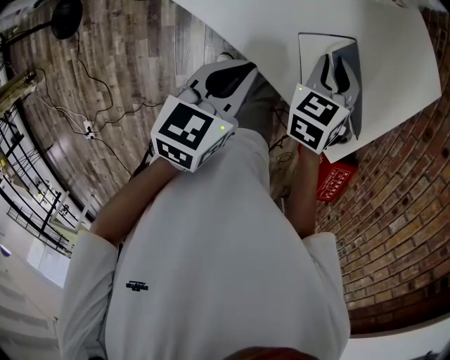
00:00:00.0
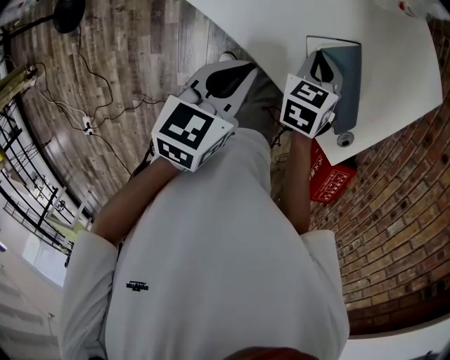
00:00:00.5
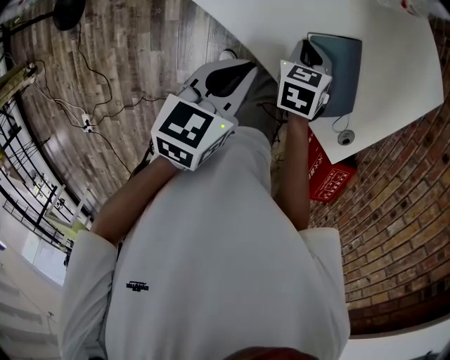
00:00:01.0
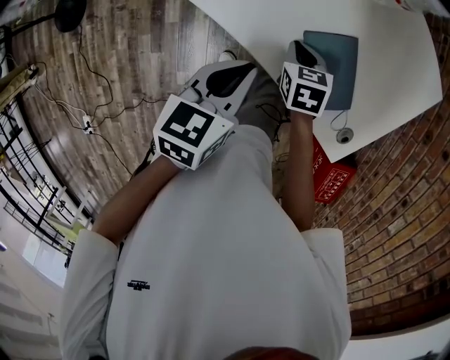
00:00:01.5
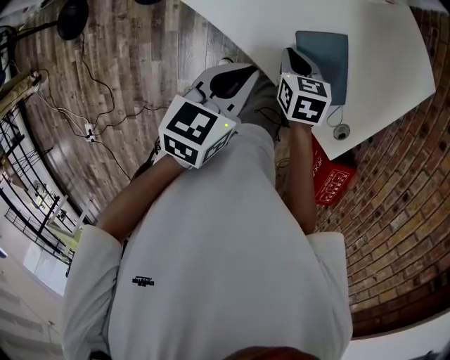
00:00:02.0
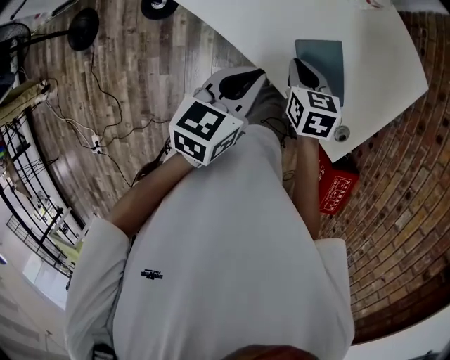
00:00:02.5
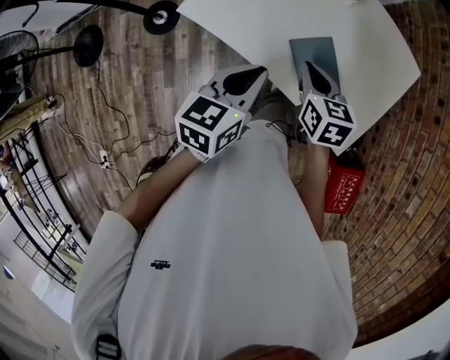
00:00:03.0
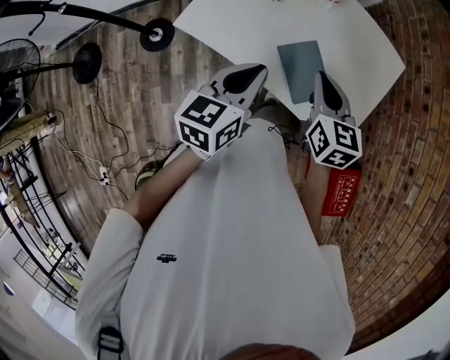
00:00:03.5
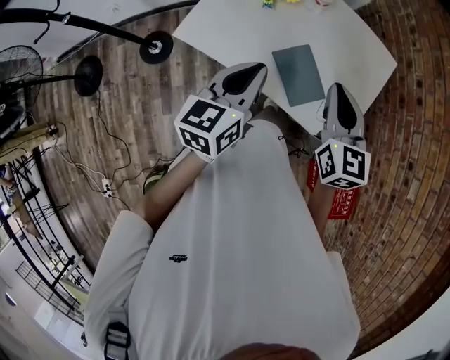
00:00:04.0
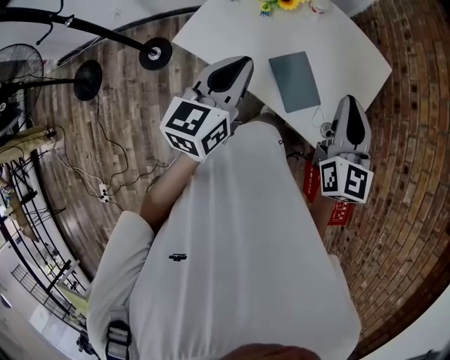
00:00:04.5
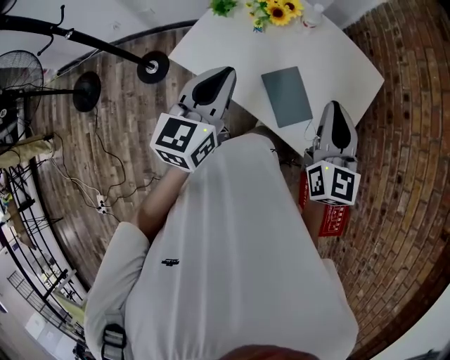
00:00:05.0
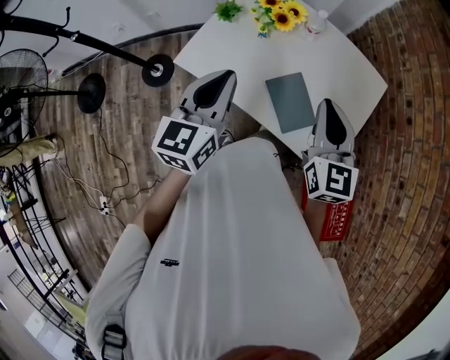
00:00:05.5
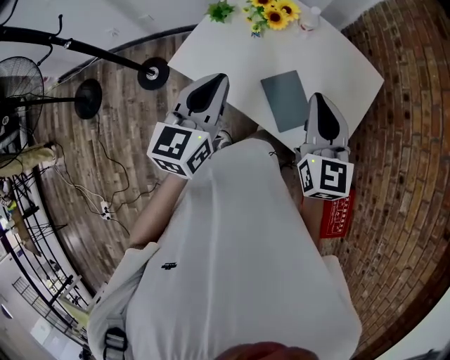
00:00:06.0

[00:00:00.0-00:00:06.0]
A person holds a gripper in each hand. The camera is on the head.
00:00:00.0 to 00:00:02.0: The right gripper goes roughly 10 cm backward, downward and to the left, and changes its angle by approximately 30 degrees.
00:00:02.0 to 00:00:04.0: The left gripper is displaced upward by approximately 15 cm, and swivels some 20 degrees. The right gripper heads upward, covering approximately 30 cm, and points its fingers roughly 40 degrees further upward.
00:00:04.0 to 00:00:06.0: The right gripper ends up some 5 cm from where it was. The left gripper is displaced to the left by some 5 cm.

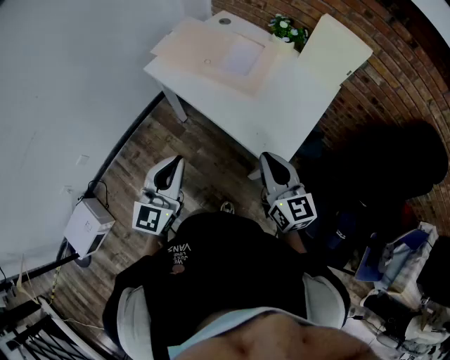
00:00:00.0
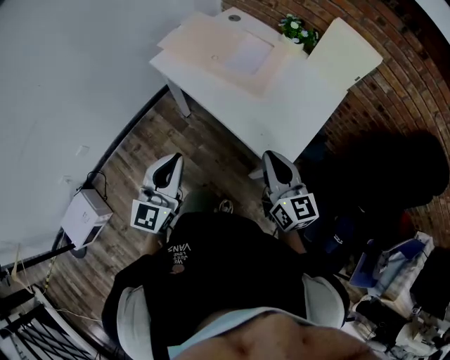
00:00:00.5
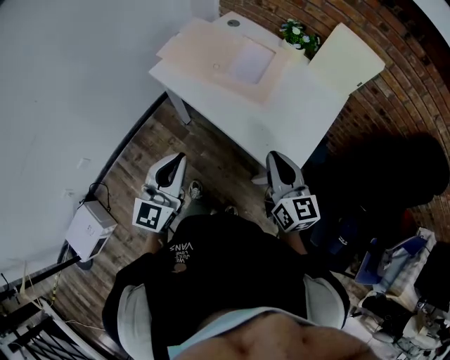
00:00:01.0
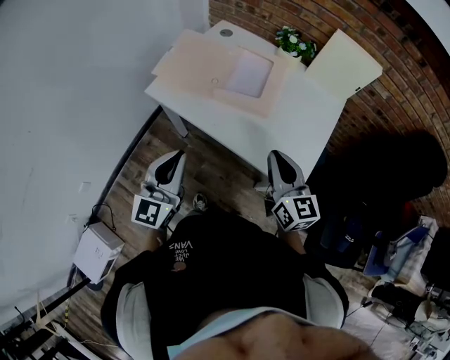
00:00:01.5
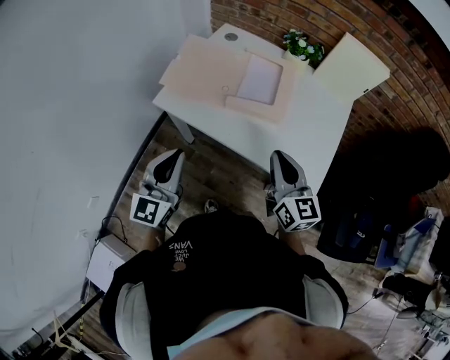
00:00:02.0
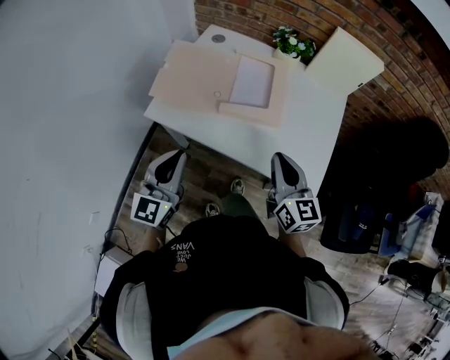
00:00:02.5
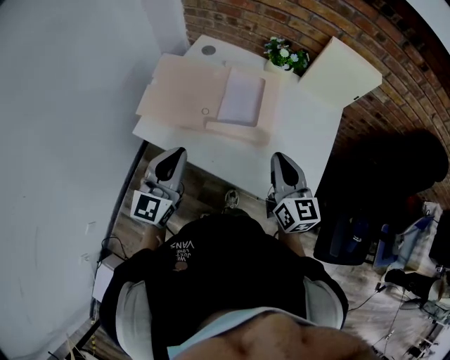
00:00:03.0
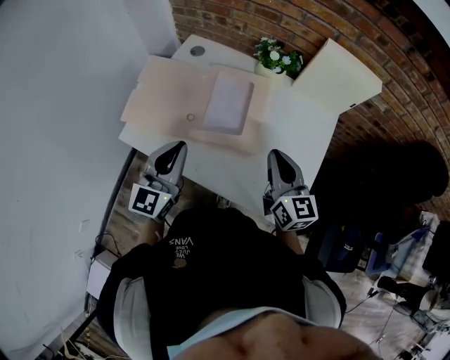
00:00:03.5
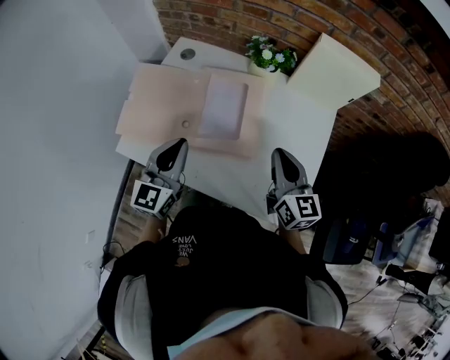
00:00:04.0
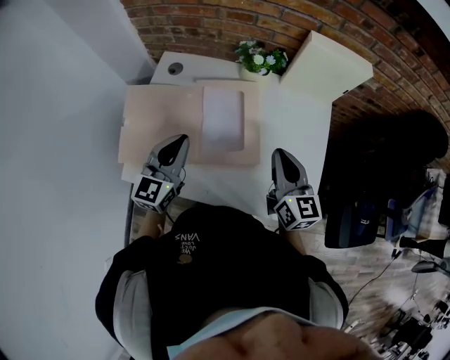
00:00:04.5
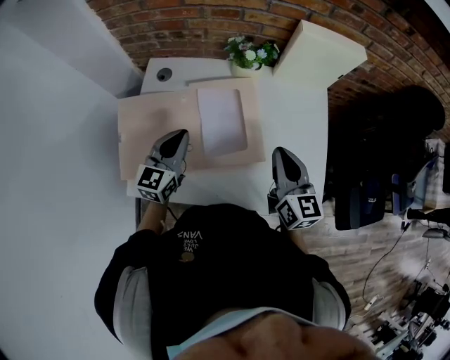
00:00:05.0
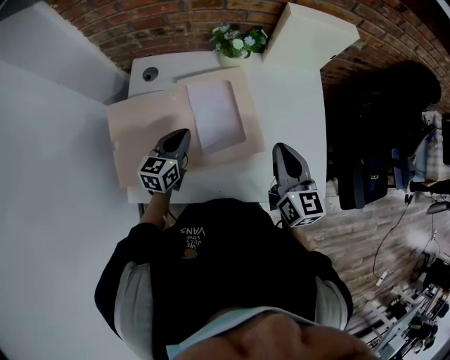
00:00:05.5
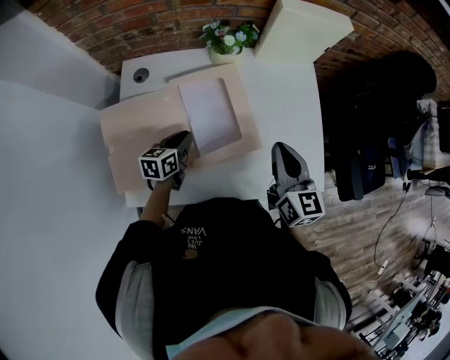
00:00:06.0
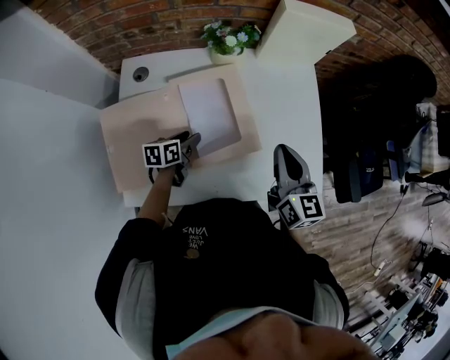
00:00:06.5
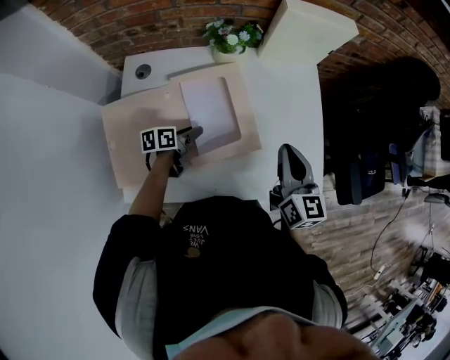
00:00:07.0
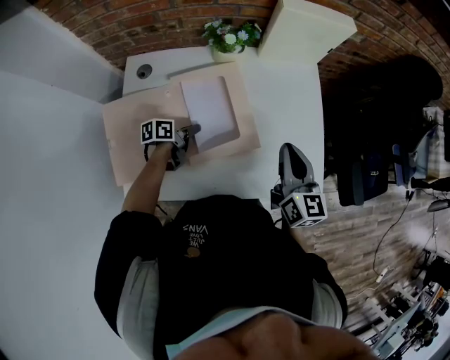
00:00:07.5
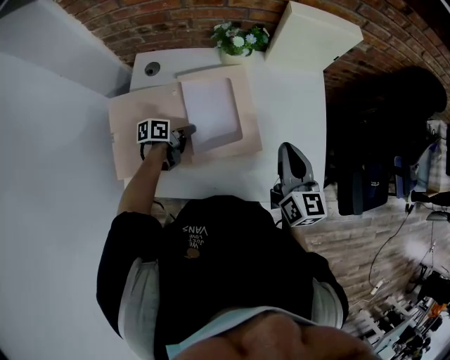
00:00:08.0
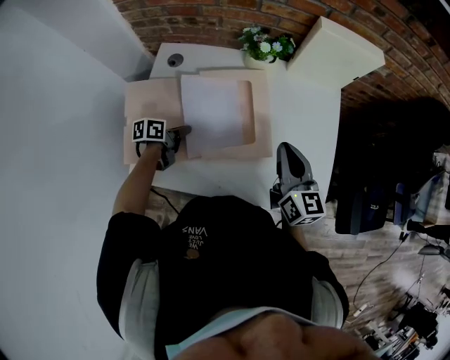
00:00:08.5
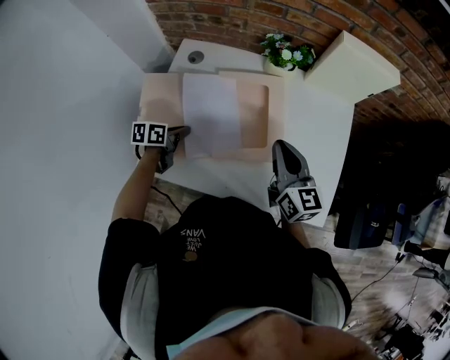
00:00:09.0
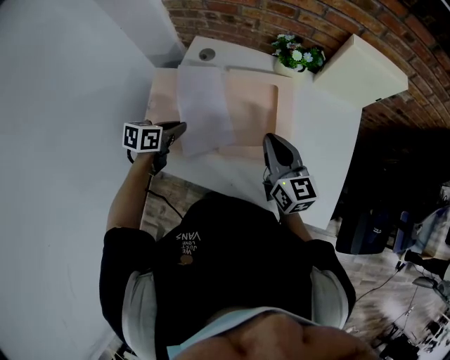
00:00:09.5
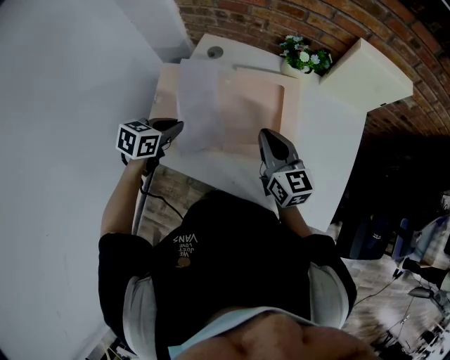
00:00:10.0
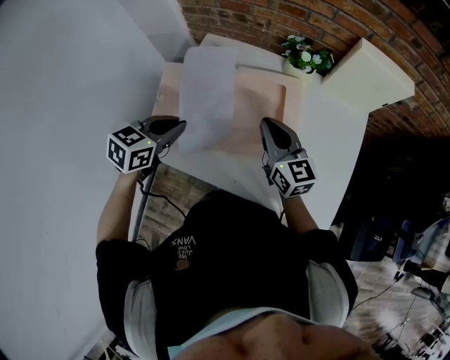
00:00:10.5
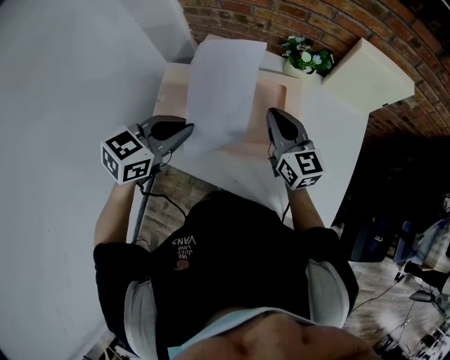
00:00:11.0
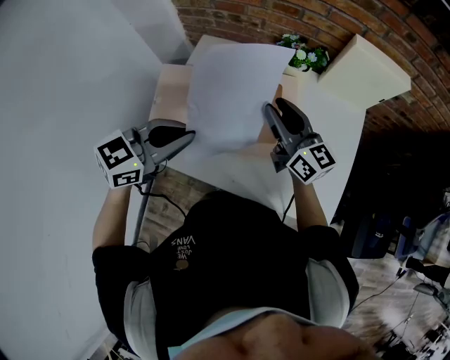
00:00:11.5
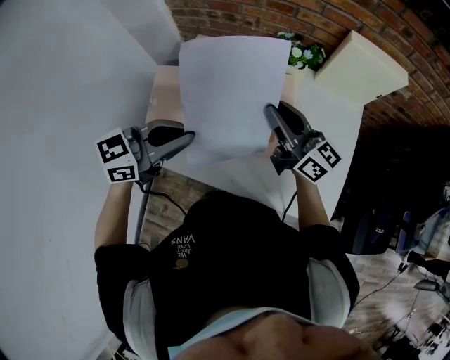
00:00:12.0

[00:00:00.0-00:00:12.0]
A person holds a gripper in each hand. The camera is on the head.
00:00:00.0 to 00:00:02.0: Both grippers move forward and to the left, about 20 cm.
00:00:02.0 to 00:00:04.0: The grippers both shift forward and to the right by roughly 25 cm.
00:00:04.0 to 00:00:06.0: The right gripper changes its angle by about 30 degrees. The left gripper travels downward by about 20 cm, and swivels about 50 degrees.
00:00:06.0 to 00:00:08.0: The left gripper rotates some 30 degrees, and opens and closes again.
00:00:08.0 to 00:00:10.0: The left gripper moves some 20 cm, and changes its angle by roughly 40 degrees; the right gripper moves about 15 cm, and turns by some 30 degrees.
00:00:10.0 to 00:00:12.0: The left gripper shifts roughly 20 cm upward and to the right, and points its fingers roughly 30 degrees further upward; the right gripper heads upward, covering about 10 cm, and changes its angle by approximately 30 degrees.

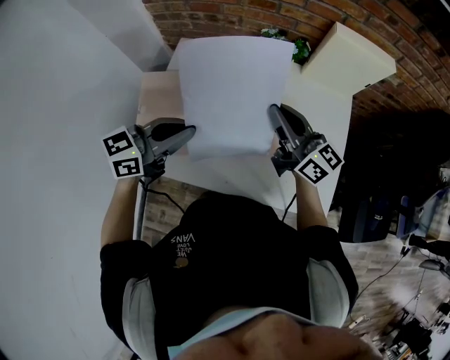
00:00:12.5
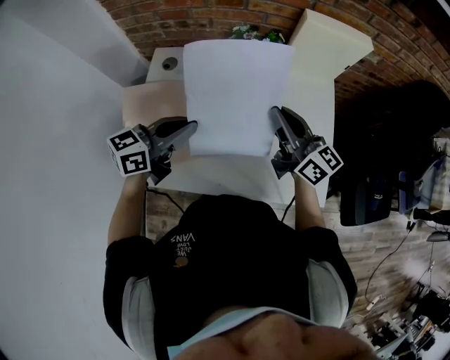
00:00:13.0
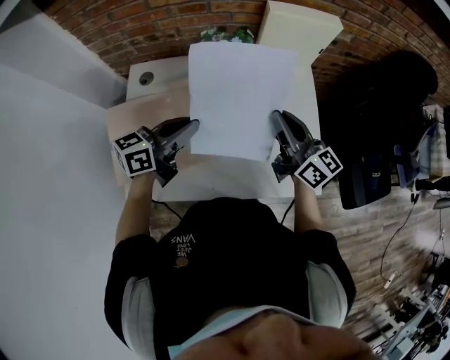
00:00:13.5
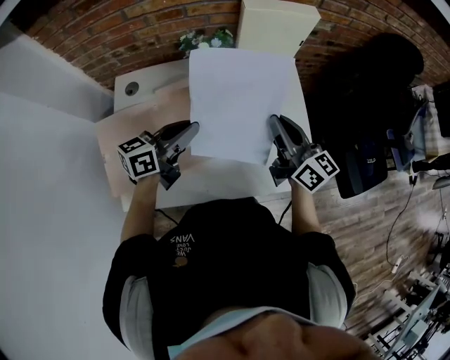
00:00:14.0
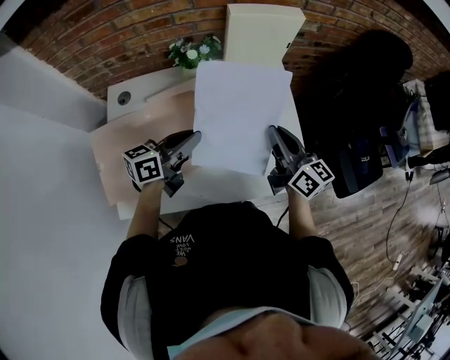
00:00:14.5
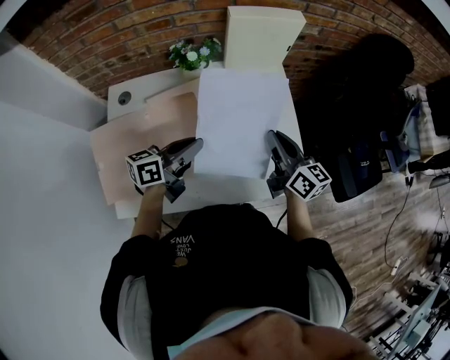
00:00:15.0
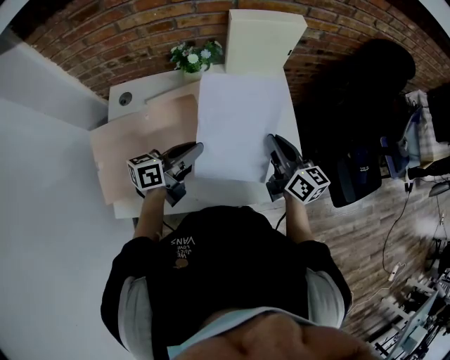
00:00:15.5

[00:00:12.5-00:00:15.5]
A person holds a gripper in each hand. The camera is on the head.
00:00:12.5 to 00:00:14.0: The left gripper goes some 15 cm to the right, forward and downward. Meanwhile the right gripper heads to the right, covering roughly 15 cm, and rotates some 30 degrees.
00:00:14.0 to 00:00:15.5: The left gripper moves roughly 5 cm. The right gripper moves downward, some 5 cm.

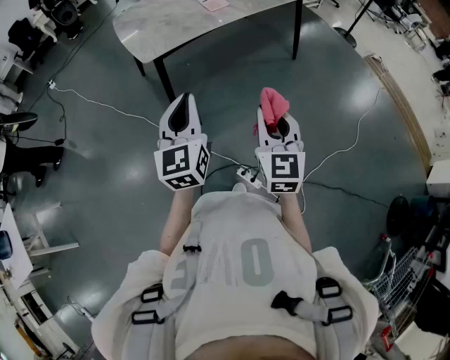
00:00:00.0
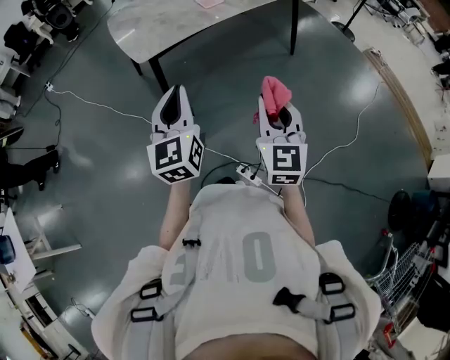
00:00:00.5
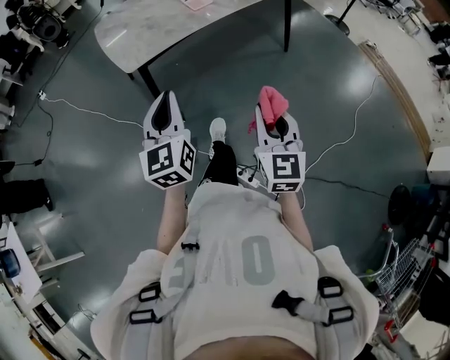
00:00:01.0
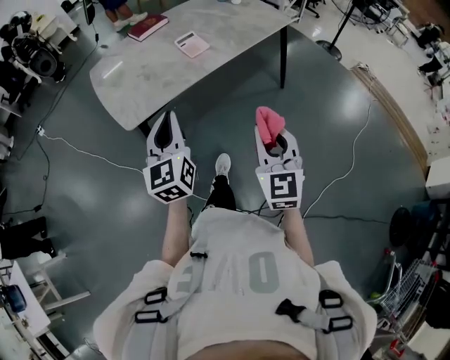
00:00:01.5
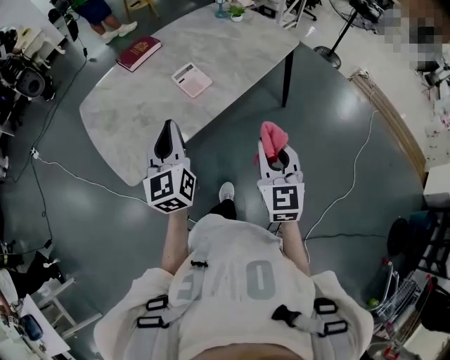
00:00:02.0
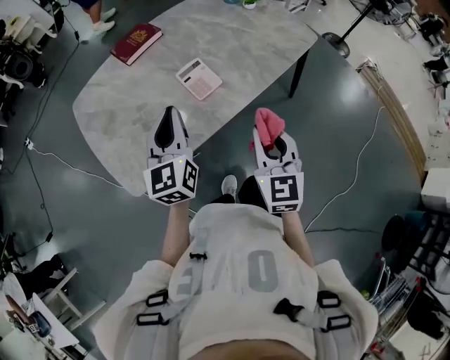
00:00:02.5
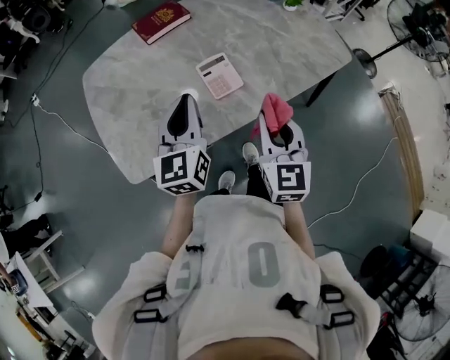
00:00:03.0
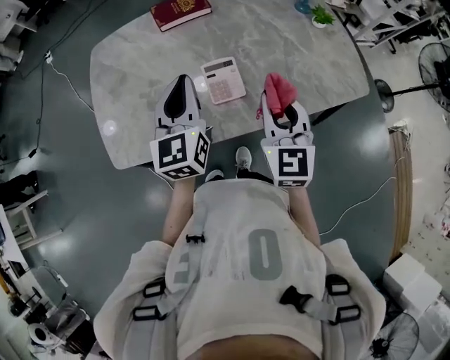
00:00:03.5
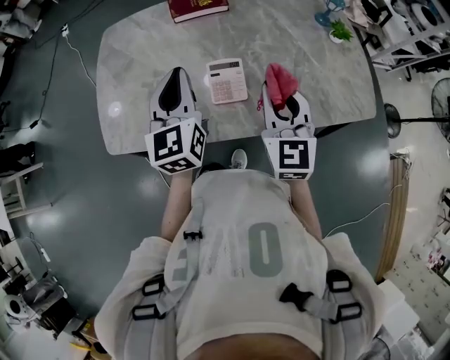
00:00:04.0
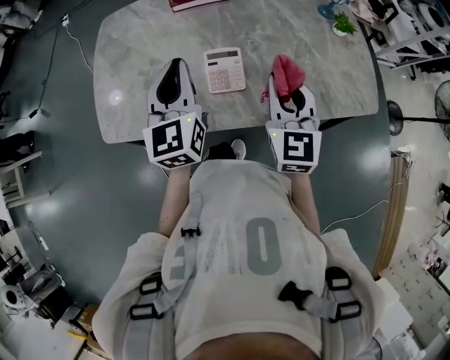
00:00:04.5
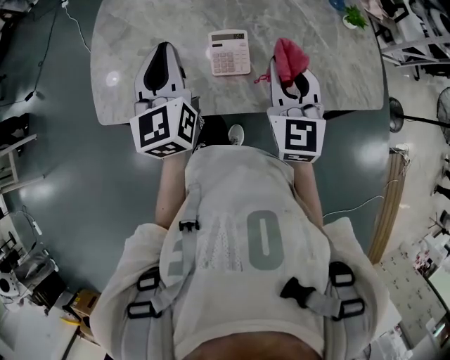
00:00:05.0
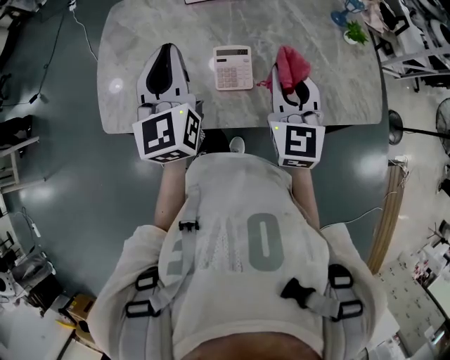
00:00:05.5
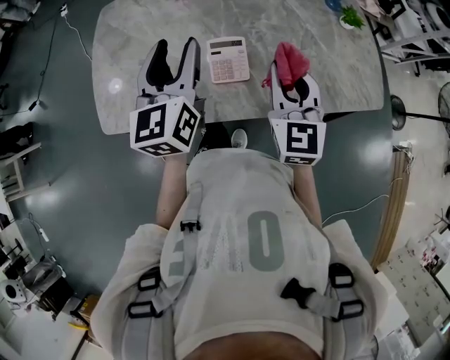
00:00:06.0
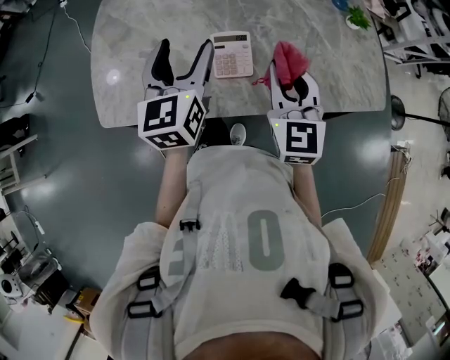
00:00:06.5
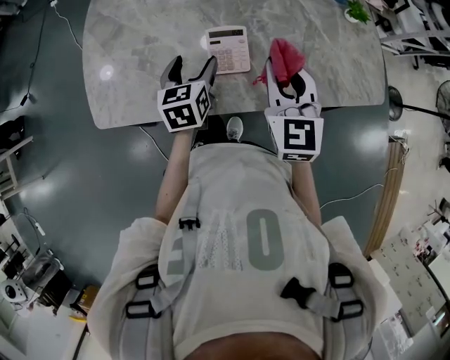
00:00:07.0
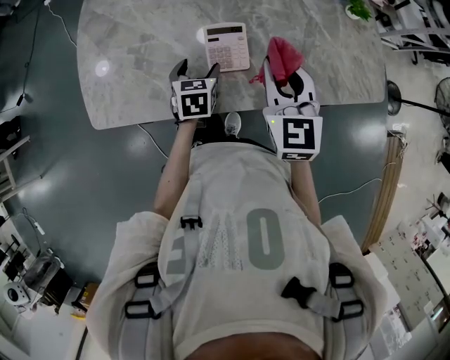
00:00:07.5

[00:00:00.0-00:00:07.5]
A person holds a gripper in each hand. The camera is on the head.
00:00:00.0 to 00:00:02.0: The pair of grippers is taken forward, about 40 cm.
00:00:02.0 to 00:00:04.0: The right gripper ends up roughly 40 cm from where it was, and turns by about 40 degrees, while the left gripper moves about 25 cm, and turns by roughly 30 degrees.
00:00:04.0 to 00:00:05.5: There are only small adjustments of the grippers.
00:00:05.5 to 00:00:07.5: The right gripper is displaced downward by some 5 cm; the left gripper shifts roughly 30 cm downward, points its fingers roughly 50 degrees further downward, and opens up.
